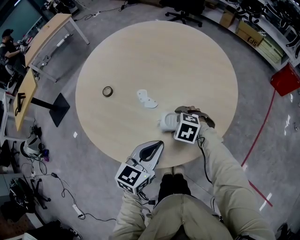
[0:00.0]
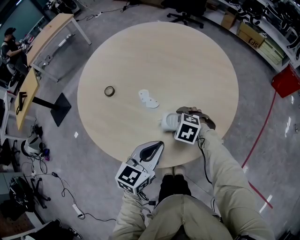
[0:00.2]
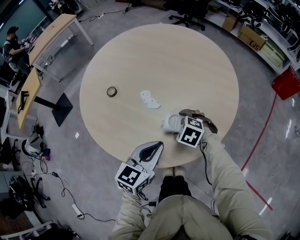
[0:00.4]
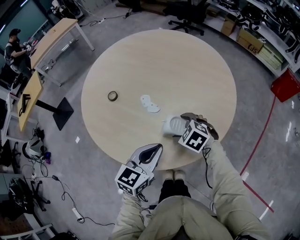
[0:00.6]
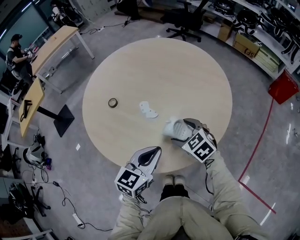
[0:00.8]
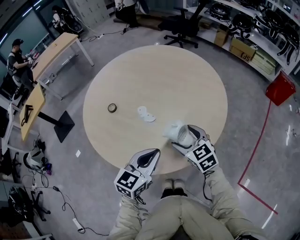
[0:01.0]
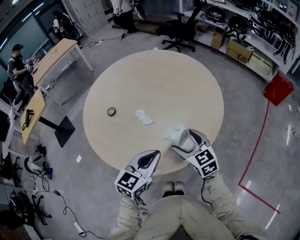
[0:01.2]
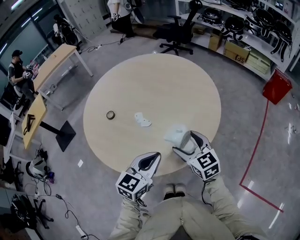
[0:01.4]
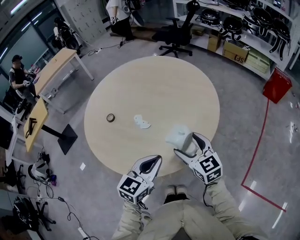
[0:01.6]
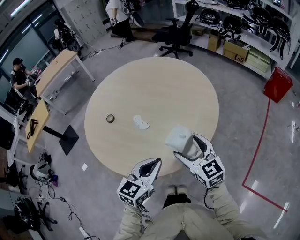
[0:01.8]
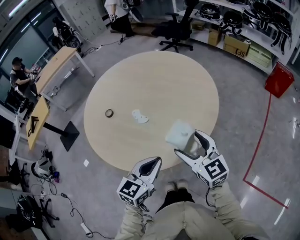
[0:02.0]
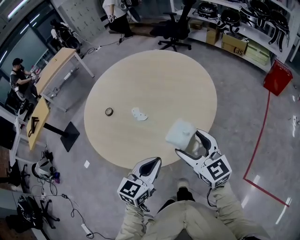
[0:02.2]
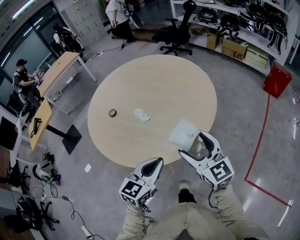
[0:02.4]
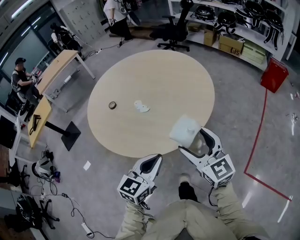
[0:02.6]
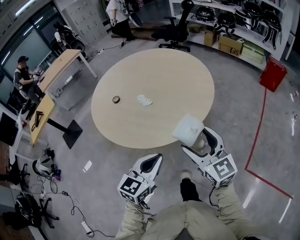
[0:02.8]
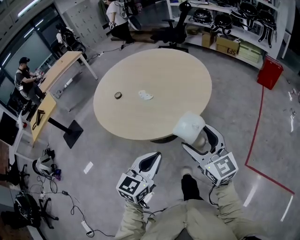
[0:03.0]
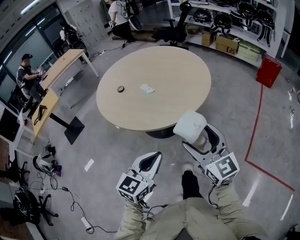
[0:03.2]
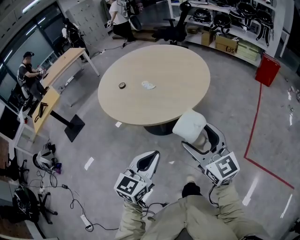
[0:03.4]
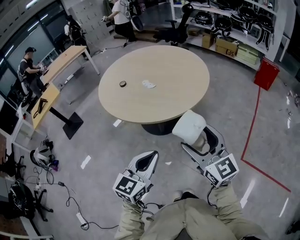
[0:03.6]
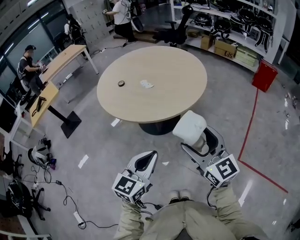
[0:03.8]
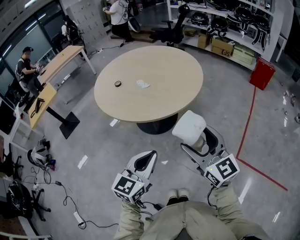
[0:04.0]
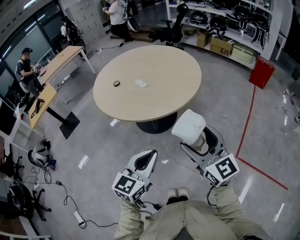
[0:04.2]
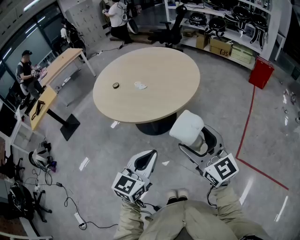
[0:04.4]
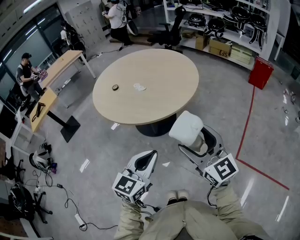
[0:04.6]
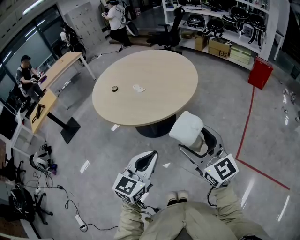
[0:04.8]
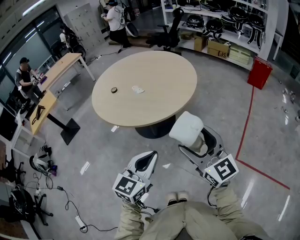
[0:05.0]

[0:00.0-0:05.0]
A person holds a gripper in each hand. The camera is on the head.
0:00.0 to 0:01.6: The right gripper travels upward, to the right and backward by about 20 cm, and angles its fingers upward, by about 50 degrees. The left gripper travels upward and backward by approximately 10 cm.
0:01.6 to 0:03.4: The grippers both shift backward by roughly 35 cm.
0:03.4 to 0:05.0: The grippers both shift to the right by some 5 cm.

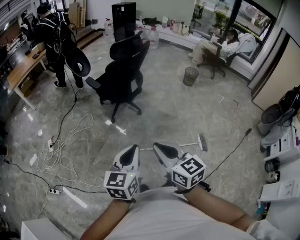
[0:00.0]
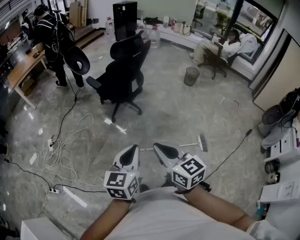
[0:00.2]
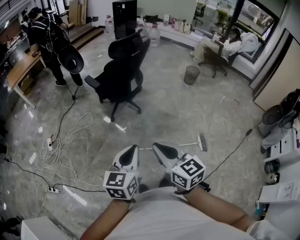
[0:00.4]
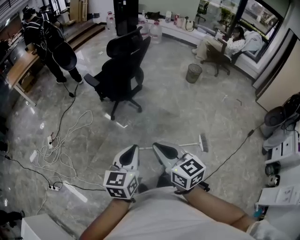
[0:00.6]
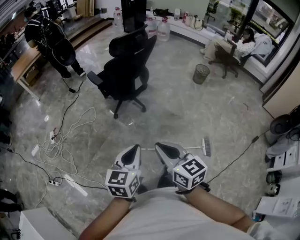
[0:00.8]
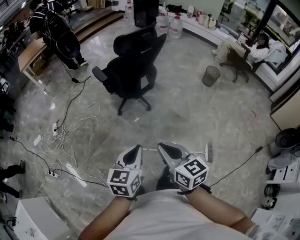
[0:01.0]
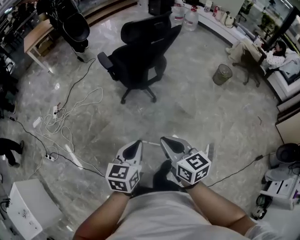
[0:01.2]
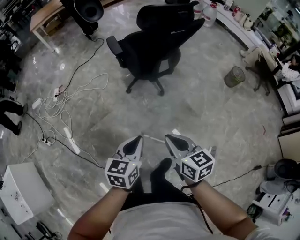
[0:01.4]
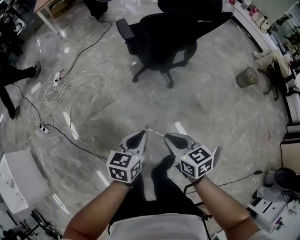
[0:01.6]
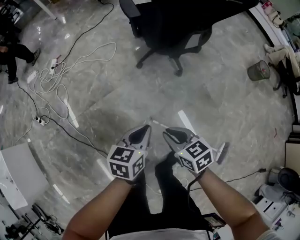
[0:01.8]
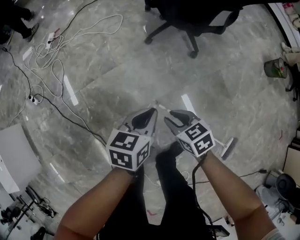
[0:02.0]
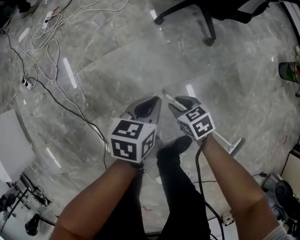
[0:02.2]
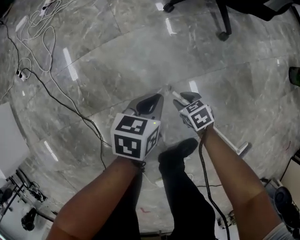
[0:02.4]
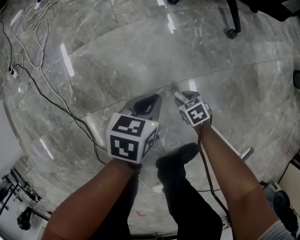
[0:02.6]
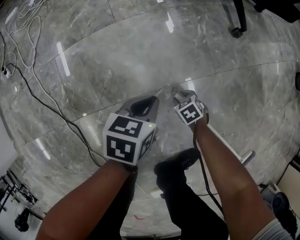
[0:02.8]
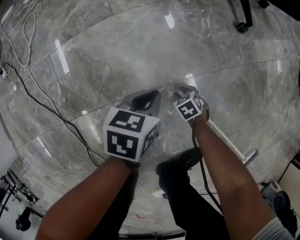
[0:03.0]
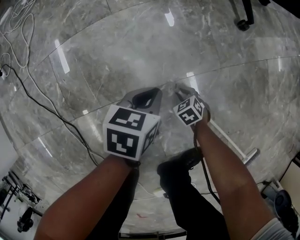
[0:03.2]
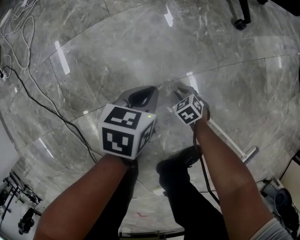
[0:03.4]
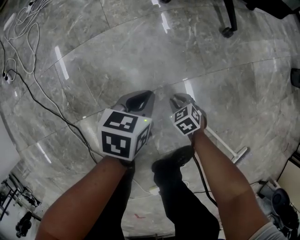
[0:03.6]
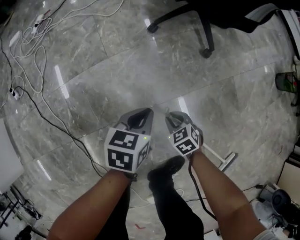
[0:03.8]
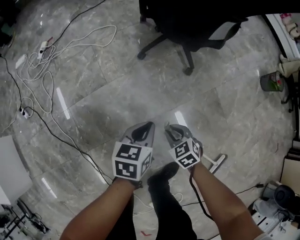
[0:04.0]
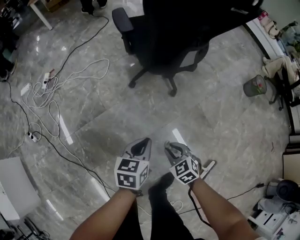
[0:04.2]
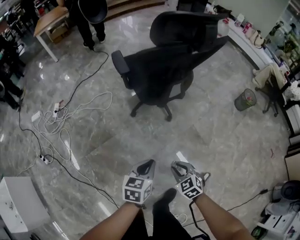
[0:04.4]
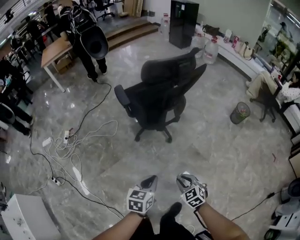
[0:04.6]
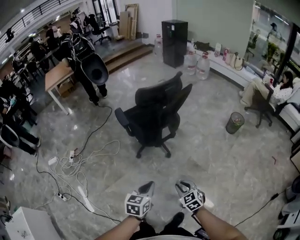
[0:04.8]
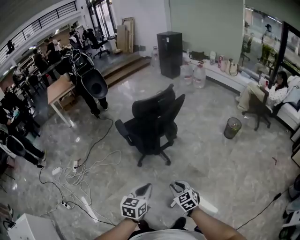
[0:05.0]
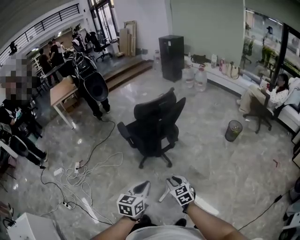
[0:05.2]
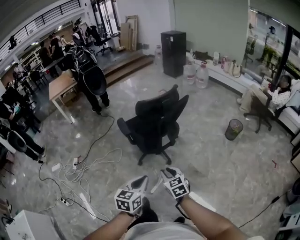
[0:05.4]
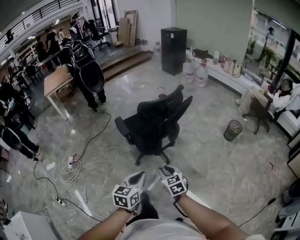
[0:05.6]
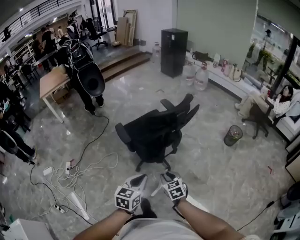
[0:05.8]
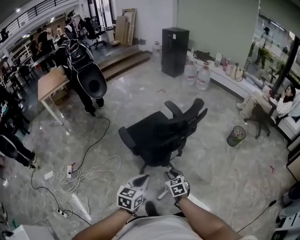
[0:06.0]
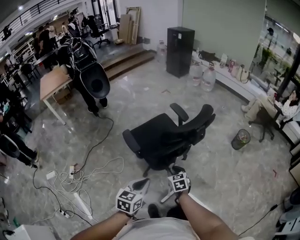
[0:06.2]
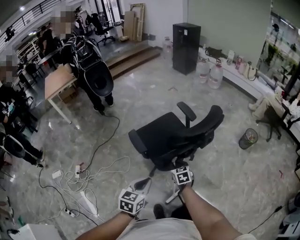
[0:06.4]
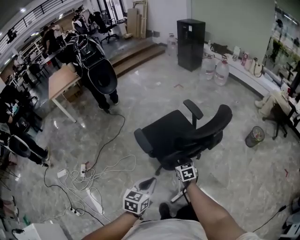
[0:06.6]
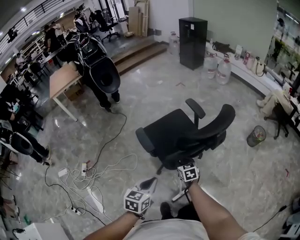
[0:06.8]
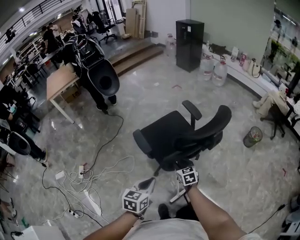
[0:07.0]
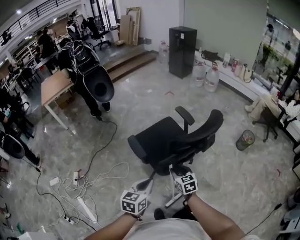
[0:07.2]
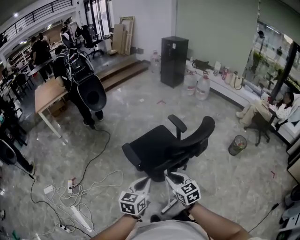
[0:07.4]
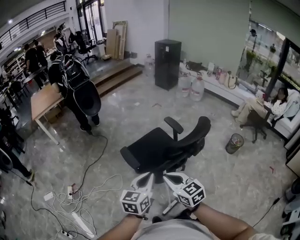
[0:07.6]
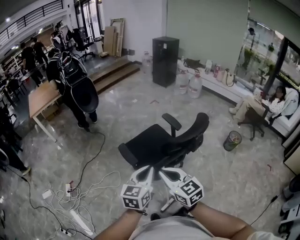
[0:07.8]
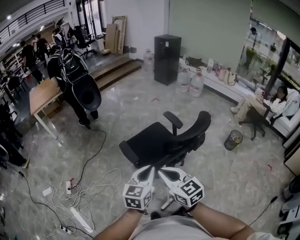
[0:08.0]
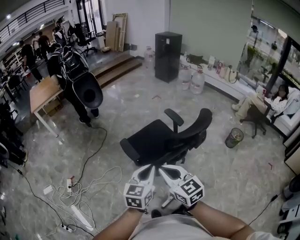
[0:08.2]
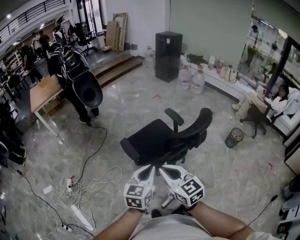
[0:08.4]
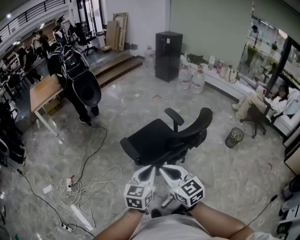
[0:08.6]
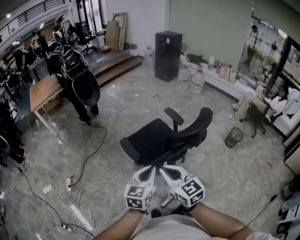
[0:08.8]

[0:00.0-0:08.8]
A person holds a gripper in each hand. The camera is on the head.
0:00.0 to 0:01.4: The left gripper moves forward and downward, roughly 30 cm, and swivels roughly 20 degrees; the right gripper is displaced forward, downward and to the right by approximately 35 cm, and rotates some 20 degrees.
0:01.4 to 0:03.0: The grippers both shift downward by some 90 cm. The right gripper tips its fingers downward by about 50 degrees, and opens up, while the left gripper rotates approximately 30 degrees.
0:03.0 to 0:04.4: The two grippers go approximately 70 cm upward. The left gripper changes its angle by roughly 20 degrees; the right gripper turns by about 30 degrees.
0:04.4 to 0:05.8: The two grippers go about 30 cm upward and forward. The right gripper changes its angle by some 30 degrees.
0:05.8 to 0:07.4: The left gripper goes approximately 20 cm forward and to the left. The right gripper travels forward, to the left and upward by roughly 20 cm.
0:07.4 to 0:08.8: The left gripper moves about 5 cm. The right gripper is displaced upward by some 10 cm.

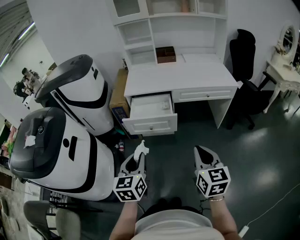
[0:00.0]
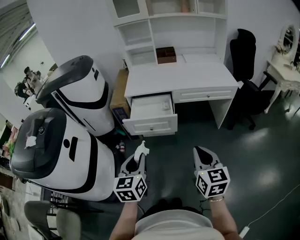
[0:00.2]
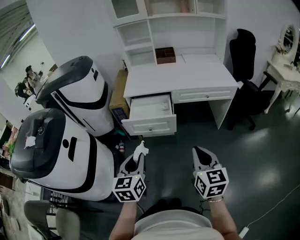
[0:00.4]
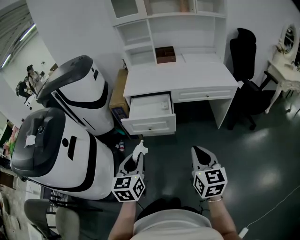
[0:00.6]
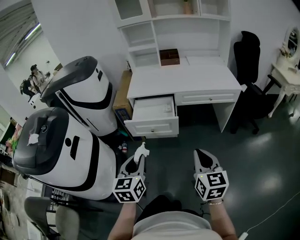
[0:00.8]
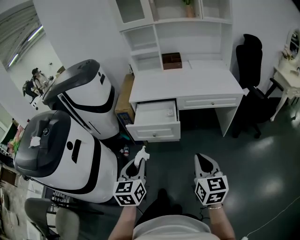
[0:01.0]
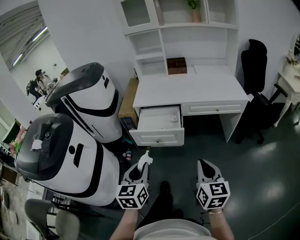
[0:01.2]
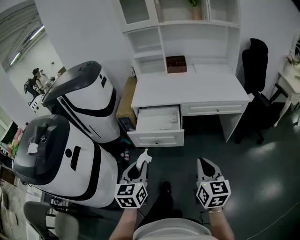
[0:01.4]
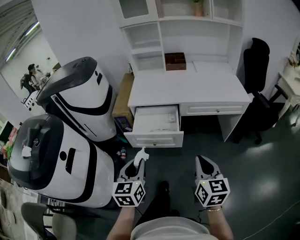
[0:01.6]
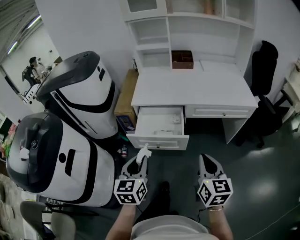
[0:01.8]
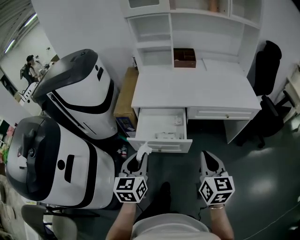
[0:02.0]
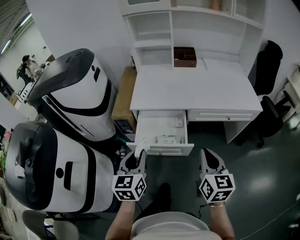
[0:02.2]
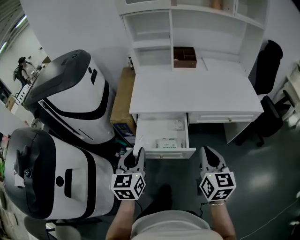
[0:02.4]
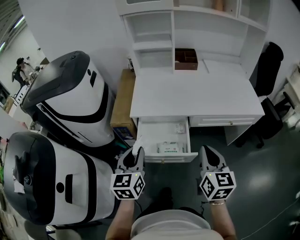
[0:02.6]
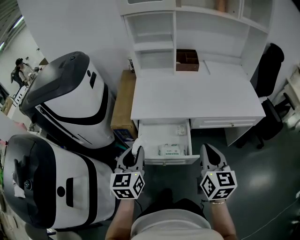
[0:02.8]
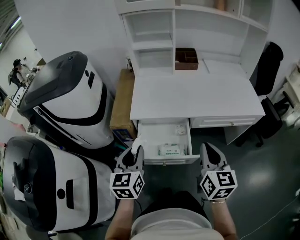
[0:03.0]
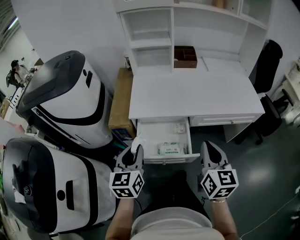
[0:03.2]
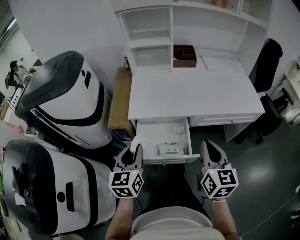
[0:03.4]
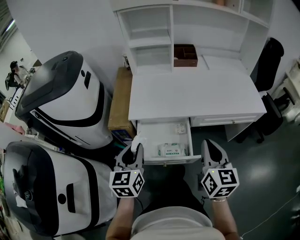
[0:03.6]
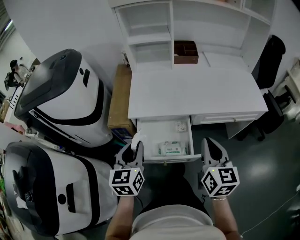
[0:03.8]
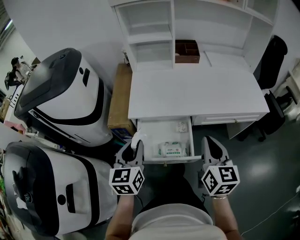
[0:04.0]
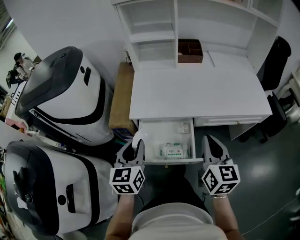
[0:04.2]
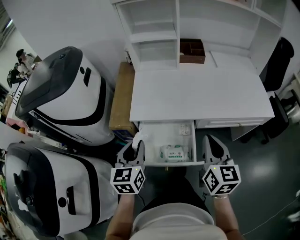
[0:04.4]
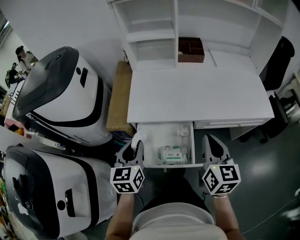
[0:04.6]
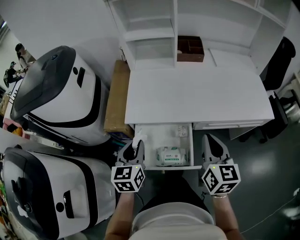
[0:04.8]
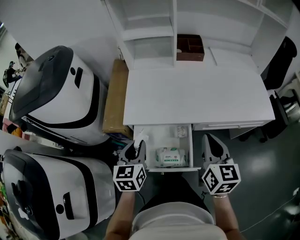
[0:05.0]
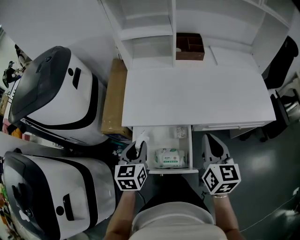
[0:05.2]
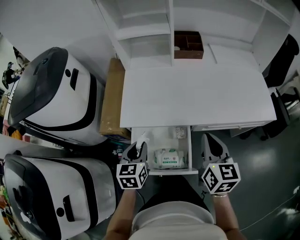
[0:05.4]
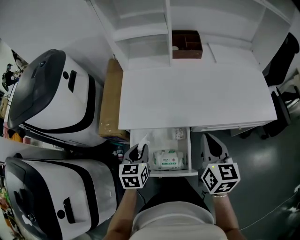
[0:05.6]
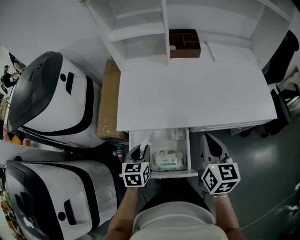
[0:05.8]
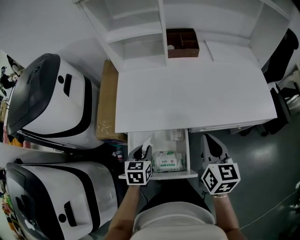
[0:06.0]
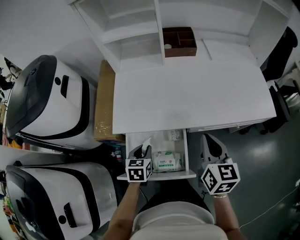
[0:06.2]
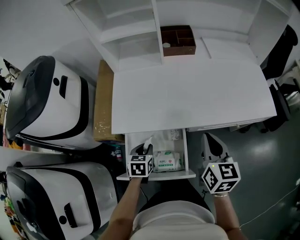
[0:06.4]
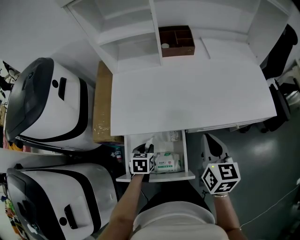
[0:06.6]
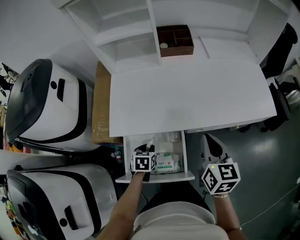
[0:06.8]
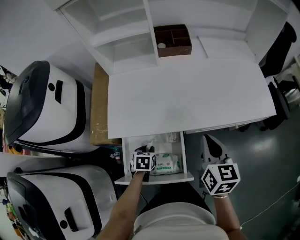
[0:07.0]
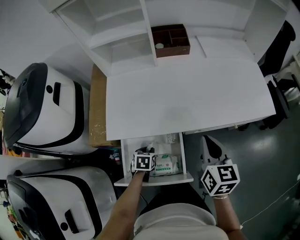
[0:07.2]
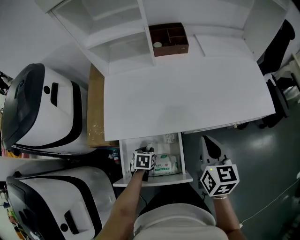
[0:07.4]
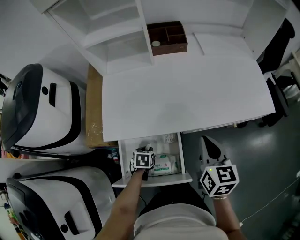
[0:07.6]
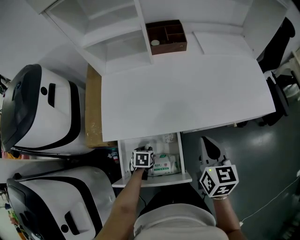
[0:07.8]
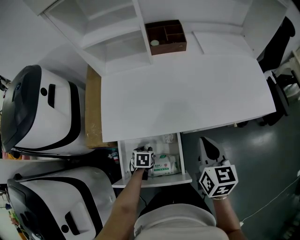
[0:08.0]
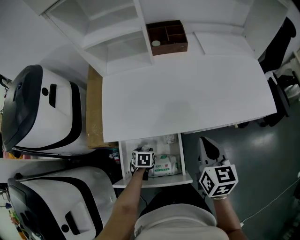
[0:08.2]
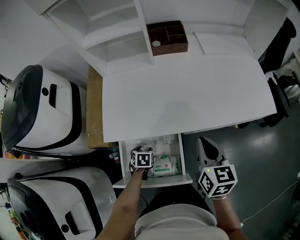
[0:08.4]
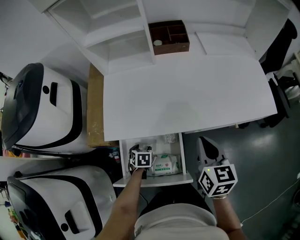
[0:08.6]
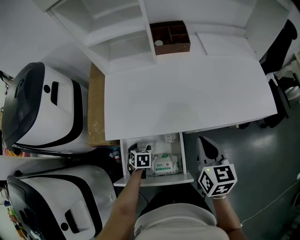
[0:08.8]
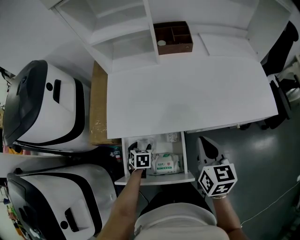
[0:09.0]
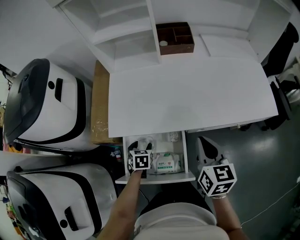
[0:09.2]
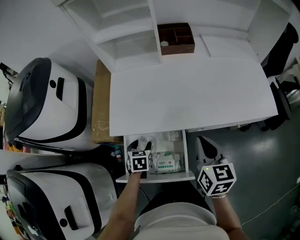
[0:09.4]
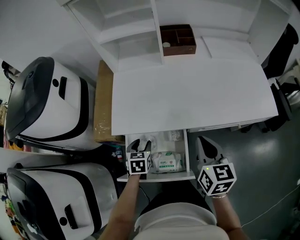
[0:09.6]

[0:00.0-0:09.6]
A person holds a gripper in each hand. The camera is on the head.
0:00.0 to 0:01.6: The grippers both shift forward by some 10 cm.
0:01.6 to 0:03.2: The two grippers go some 25 cm forward.
0:03.2 to 0:04.8: The left gripper shifts about 10 cm forward and downward. The right gripper goes some 10 cm forward.
0:04.8 to 0:06.4: The right gripper heads forward, covering roughly 5 cm; the left gripper goes approximately 20 cm downward and to the right, and swivels about 30 degrees.
0:06.4 to 0:08.0: The left gripper travels downward by some 10 cm.
0:08.0 to 0:09.6: The left gripper is displaced upward by roughly 10 cm, swivels roughly 20 degrees, and opens its fingers.
